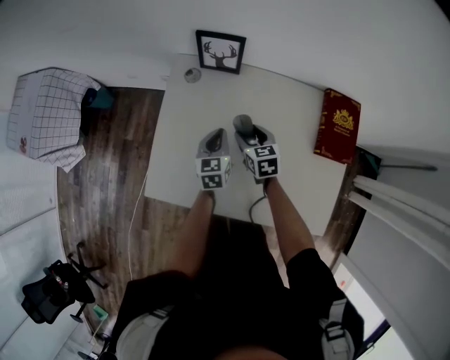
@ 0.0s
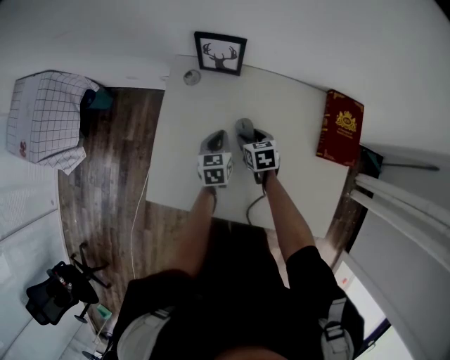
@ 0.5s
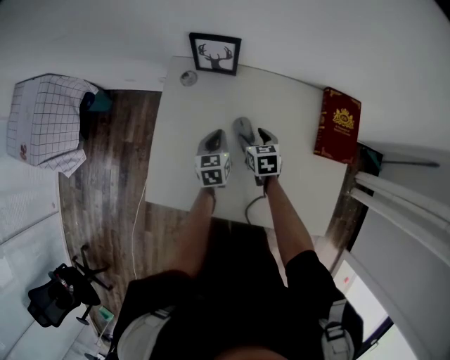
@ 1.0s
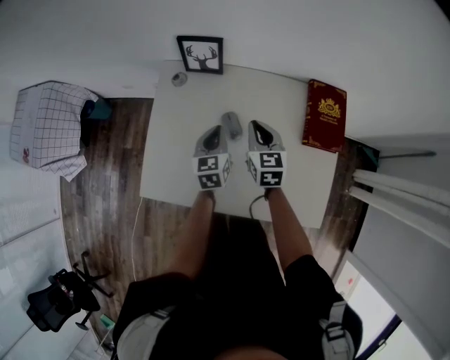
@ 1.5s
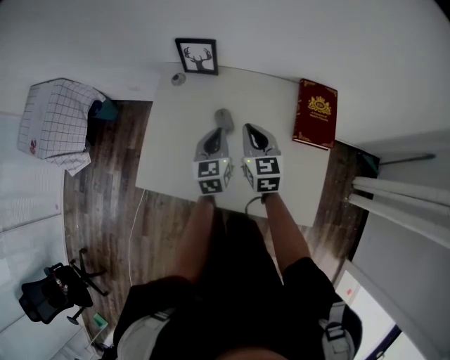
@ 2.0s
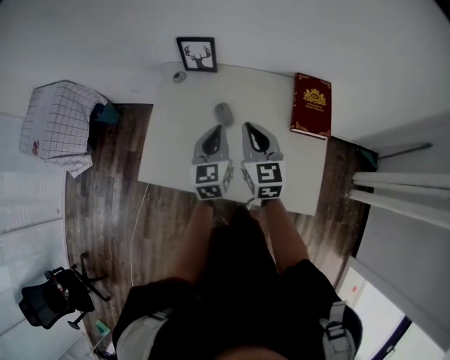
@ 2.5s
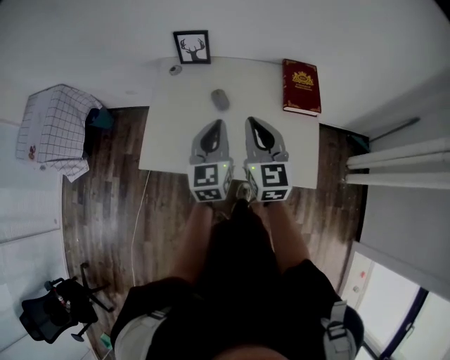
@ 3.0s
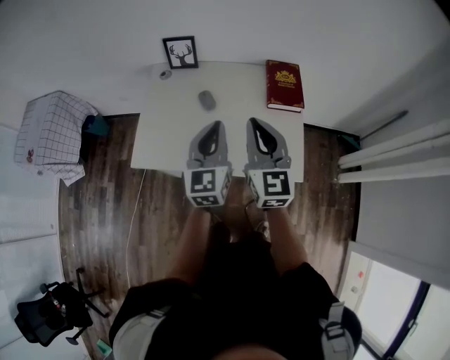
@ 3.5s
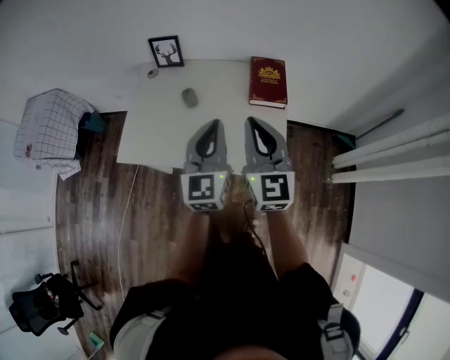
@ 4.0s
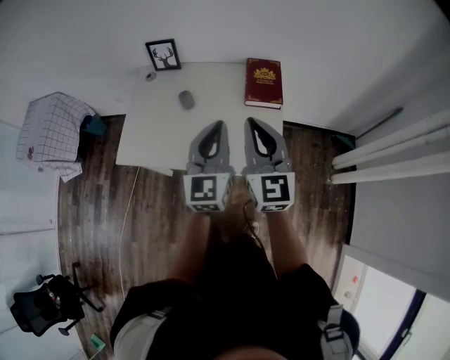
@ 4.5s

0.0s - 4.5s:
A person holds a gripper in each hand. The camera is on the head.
0.0s - 2.0s: Both grippers move upward, to the right and backward, roughly 15 cm. The right gripper rotates approximately 20 degrees, and closes.
2.0s - 4.5s: Both grippers move backward, upward and to the right, approximately 40 cm. The right gripper changes its angle by some 30 degrees. The left gripper changes its angle by some 30 degrees.

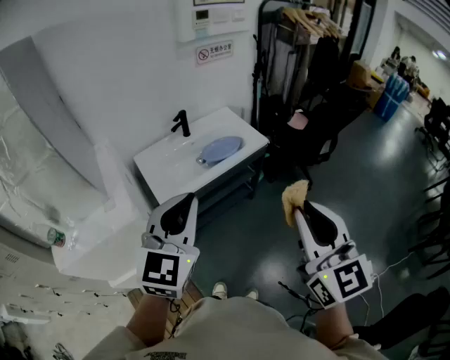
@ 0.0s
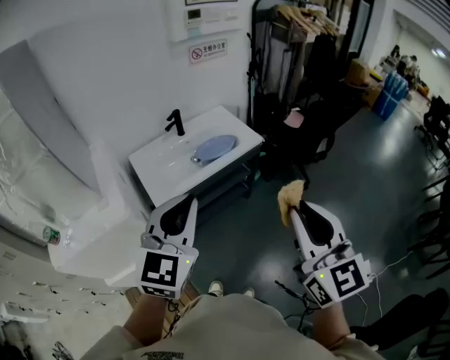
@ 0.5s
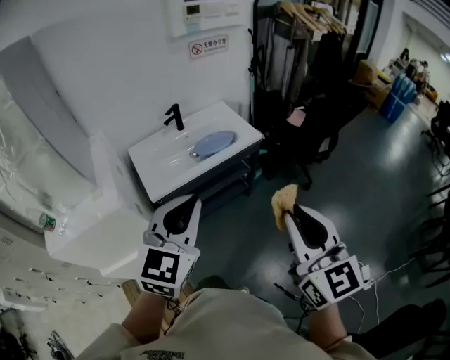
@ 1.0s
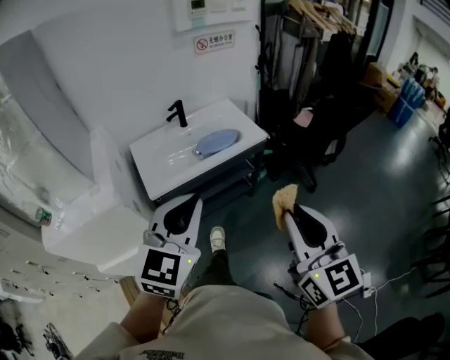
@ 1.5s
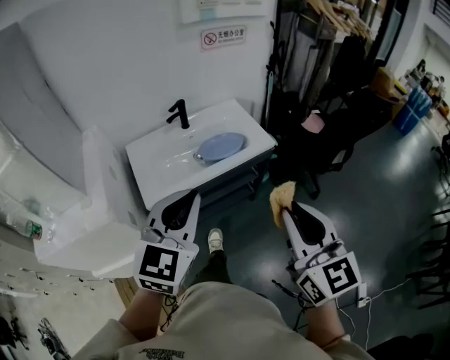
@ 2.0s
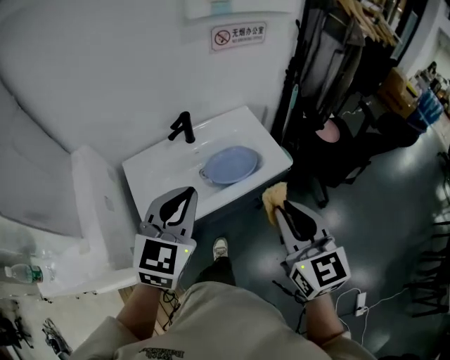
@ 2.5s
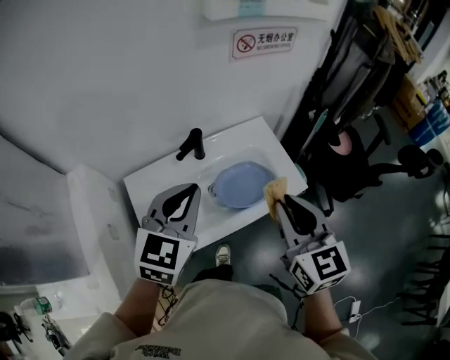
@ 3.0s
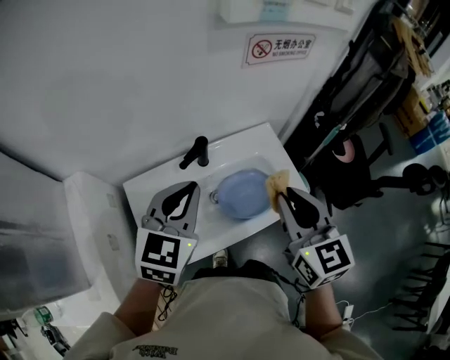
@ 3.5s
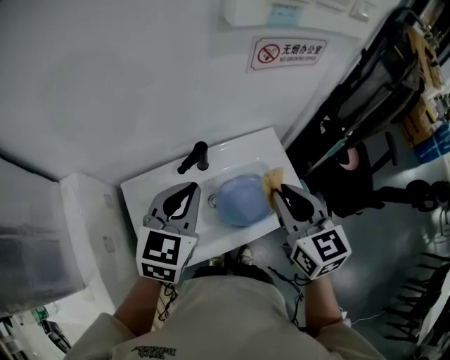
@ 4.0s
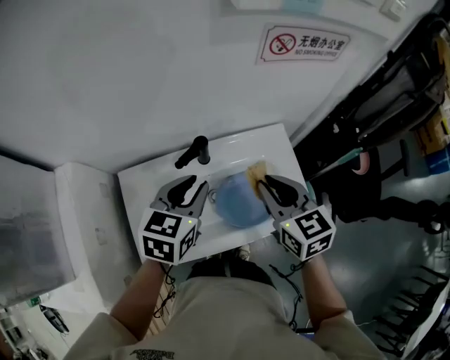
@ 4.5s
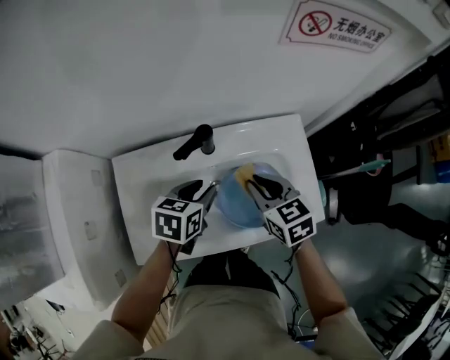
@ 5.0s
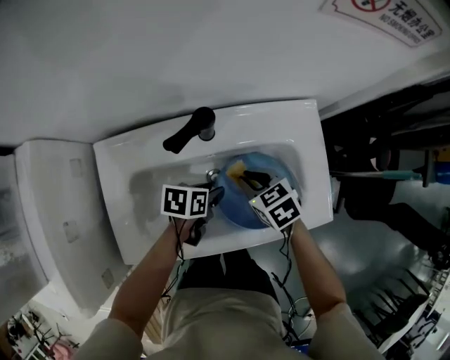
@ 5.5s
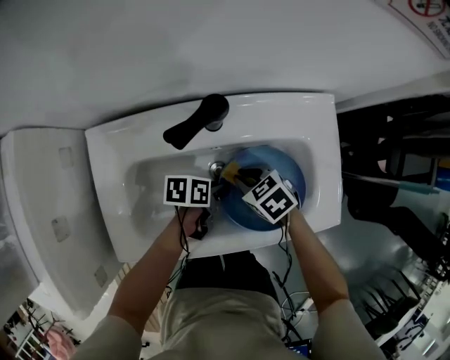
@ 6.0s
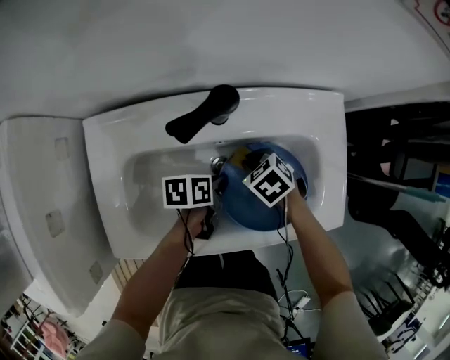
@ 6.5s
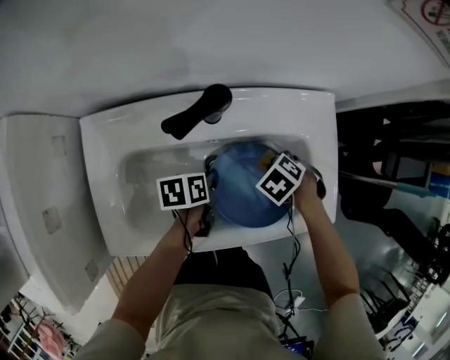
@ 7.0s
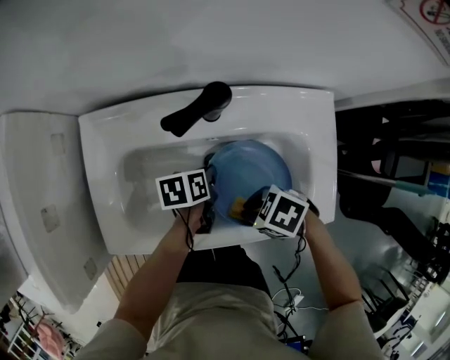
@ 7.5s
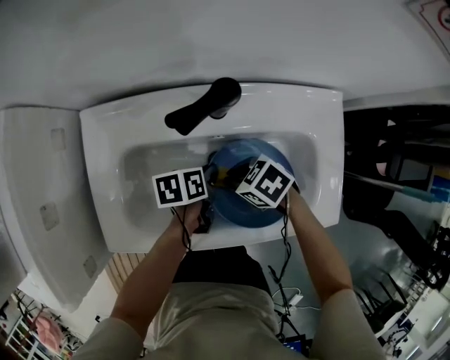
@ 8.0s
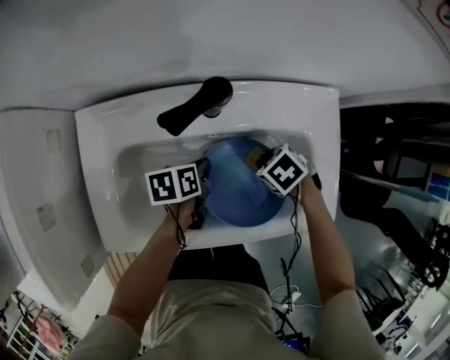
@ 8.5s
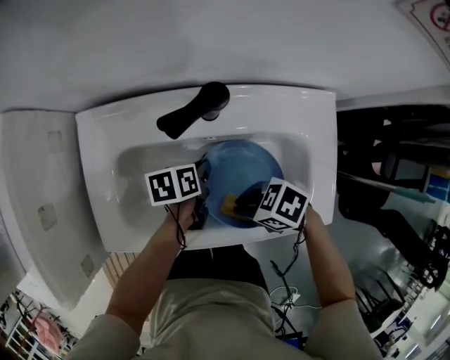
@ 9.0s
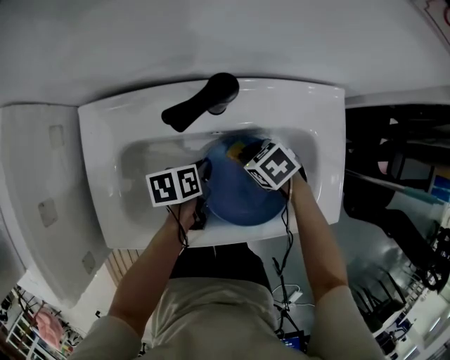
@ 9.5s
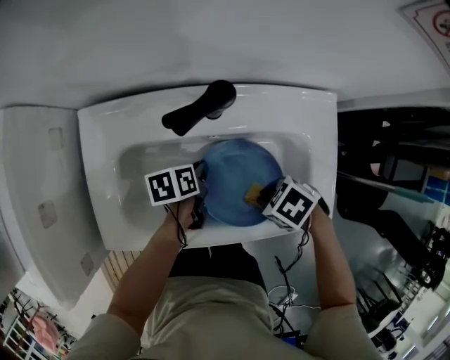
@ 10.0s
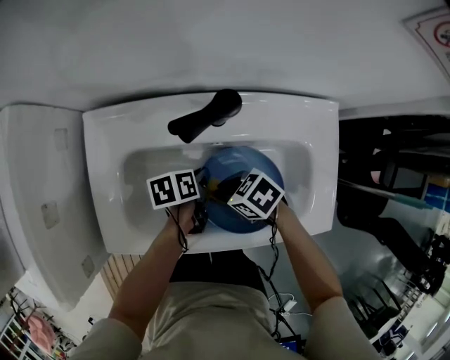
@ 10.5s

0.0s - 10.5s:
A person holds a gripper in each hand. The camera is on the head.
0.0s - 2.0s: The right gripper heads forward and downward, covering some 15 cm, while the left gripper goes about 15 cm forward, downward and to the right.
2.0s - 4.0s: The pair of grippers is taken forward, some 40 cm.
4.0s - 6.5s: The grippers both shift downward by some 40 cm. The left gripper rolls counterclockwise, seen from behind, by some 70 degrees, and opens, then closes again. The right gripper tilts its fingers approximately 50 degrees downward.
6.5s - 8.5s: The right gripper travels upward and back again, approximately 10 cm each way.
8.5s - 10.5s: The right gripper moves up and down over about 5 cm, changing direction 2 times, and rotates about 30 degrees.

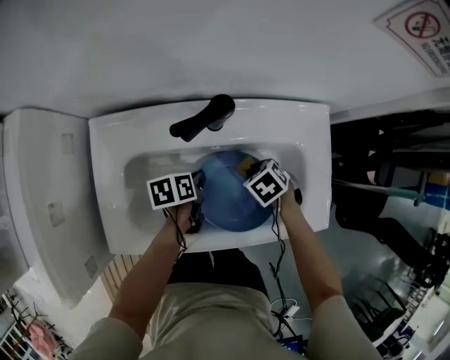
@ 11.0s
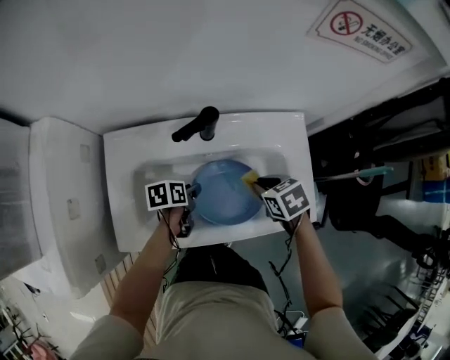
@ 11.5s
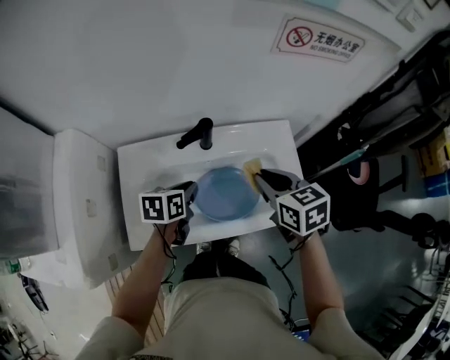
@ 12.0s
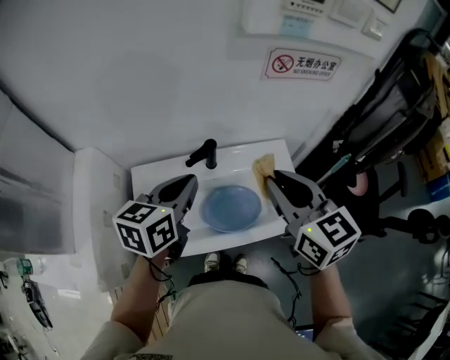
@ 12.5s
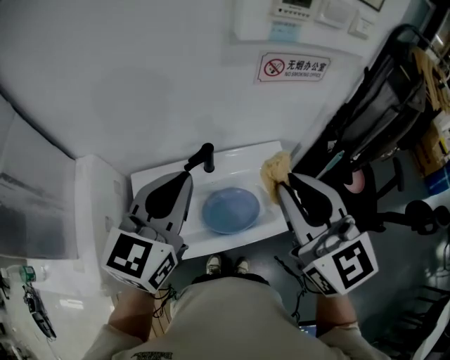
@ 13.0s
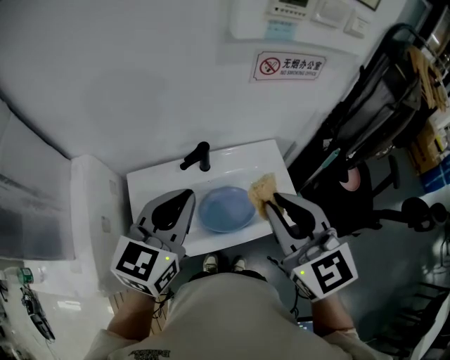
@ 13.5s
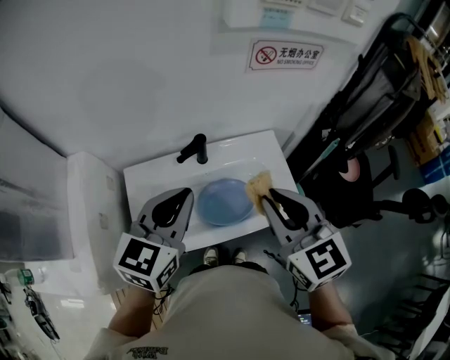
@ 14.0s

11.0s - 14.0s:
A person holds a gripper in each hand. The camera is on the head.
11.0s - 12.5s: The two grippers go some 50 cm upward. The left gripper angles its fingers upward, by roughly 30 degrees, and opens, then closes again; the right gripper points its fingers approximately 60 degrees further upward.
12.5s - 14.0s: Both grippers travel together backward, approximately 5 cm. The left gripper rotates approximately 20 degrees, while the right gripper moves roughly 10 cm upward and comes back.

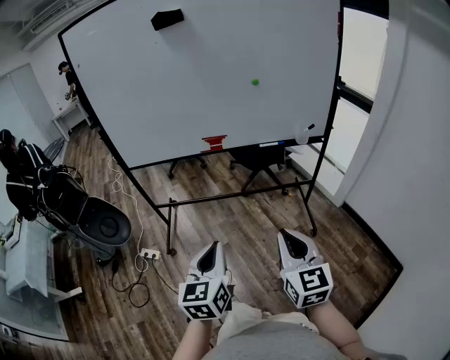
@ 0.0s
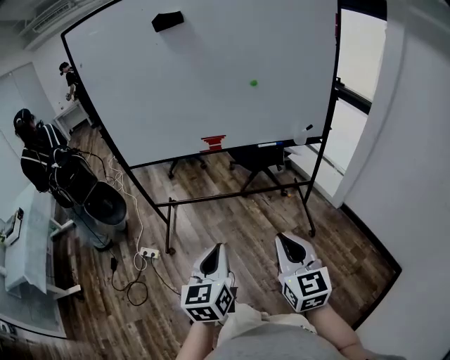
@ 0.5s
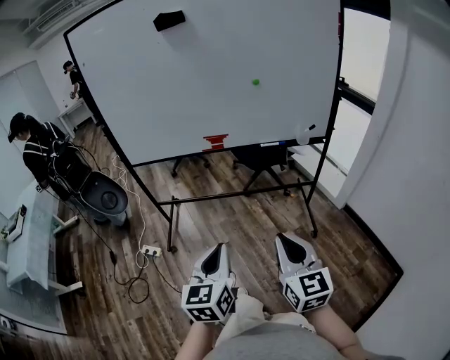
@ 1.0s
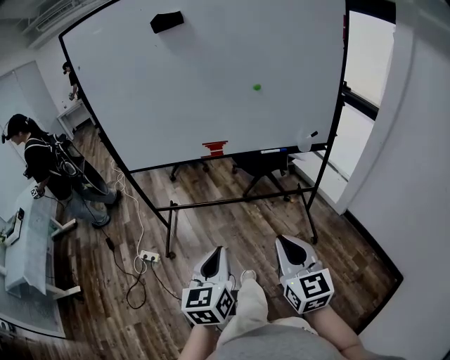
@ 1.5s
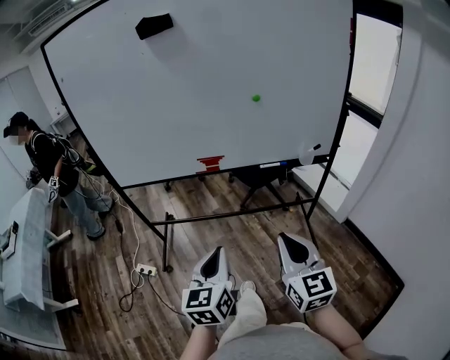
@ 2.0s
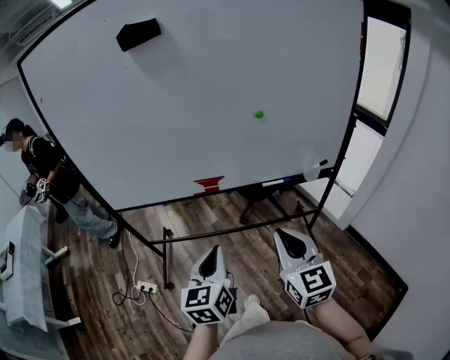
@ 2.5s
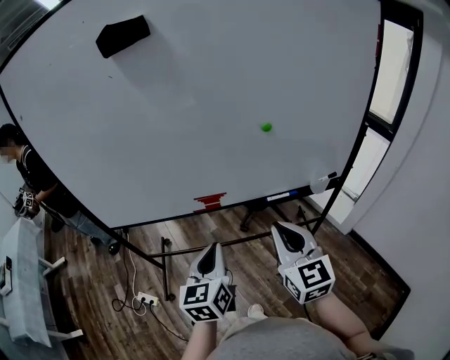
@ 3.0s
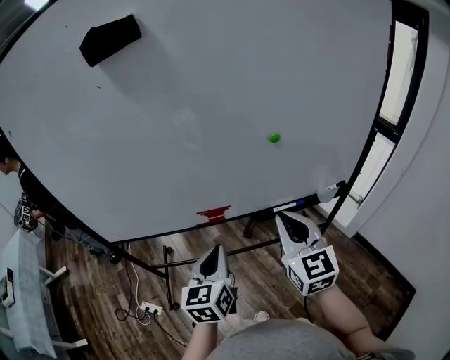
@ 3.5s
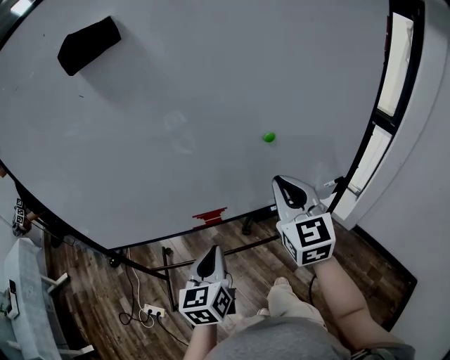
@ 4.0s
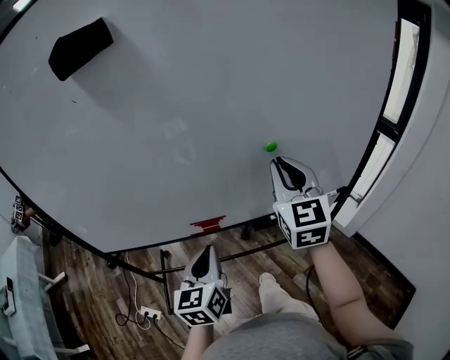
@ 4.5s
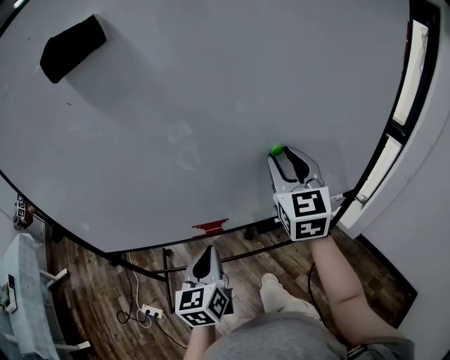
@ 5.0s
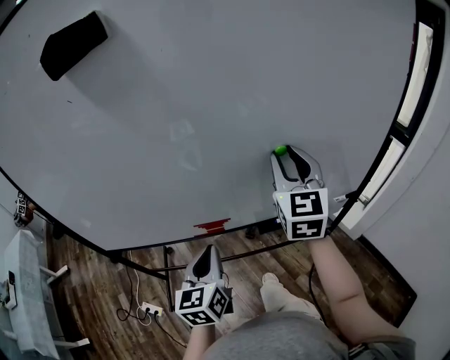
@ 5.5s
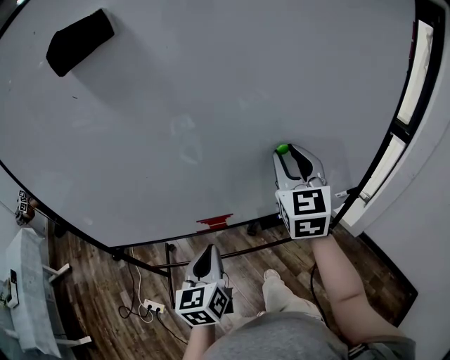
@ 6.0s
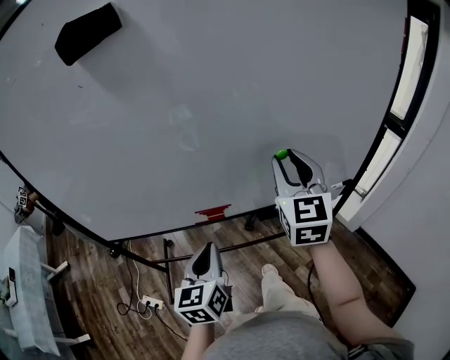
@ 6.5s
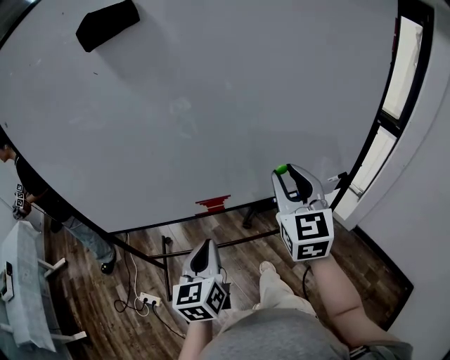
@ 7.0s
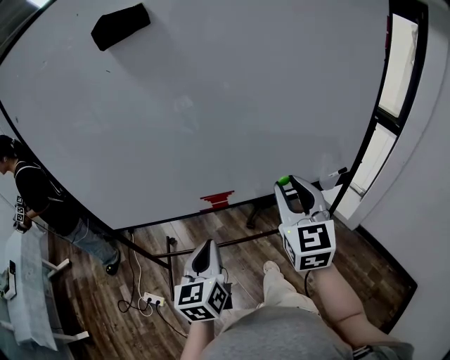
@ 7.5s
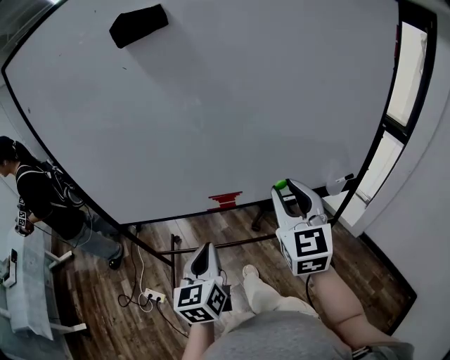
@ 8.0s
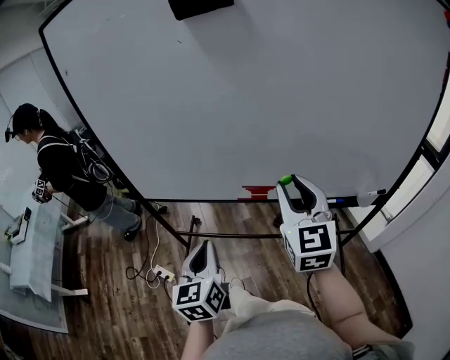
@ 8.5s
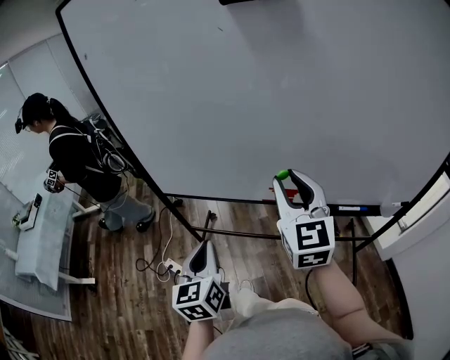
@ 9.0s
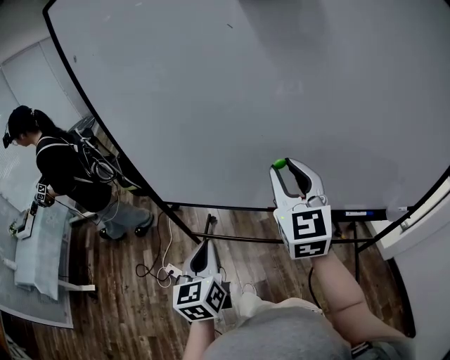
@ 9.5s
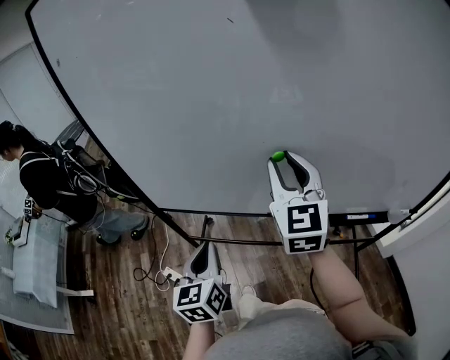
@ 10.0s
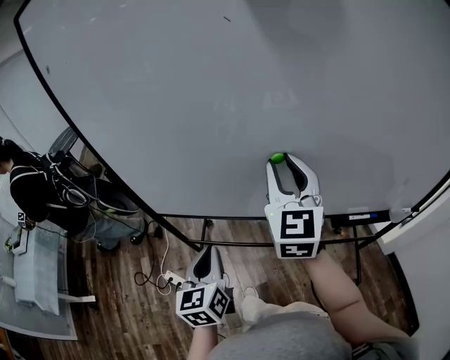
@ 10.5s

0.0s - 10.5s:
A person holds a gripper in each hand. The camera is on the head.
0.0s - 2.0s: Both grippers move forward, roughly 10 cm.
2.0s - 4.0s: Both grippers travel together forward, some 35 cm.
4.0s - 6.5s: The right gripper goes roughly 5 cm forward, and opens up.
6.5s - 8.5s: The grippers both shift to the left and backward by approximately 15 cm.
8.5s - 10.5s: The two grippers go approximately 20 cm forward and to the left.
